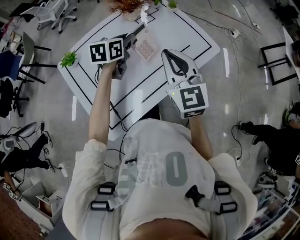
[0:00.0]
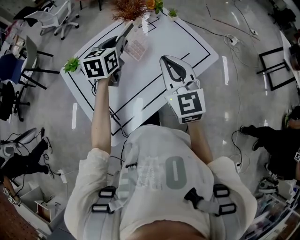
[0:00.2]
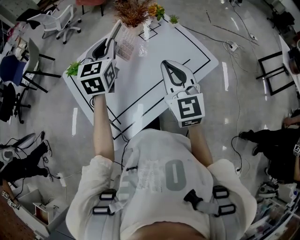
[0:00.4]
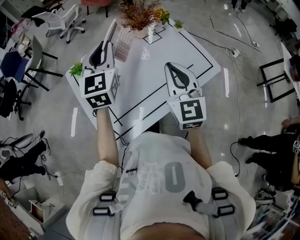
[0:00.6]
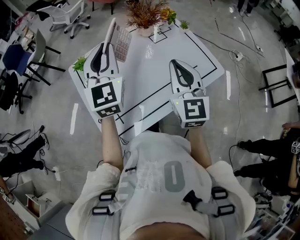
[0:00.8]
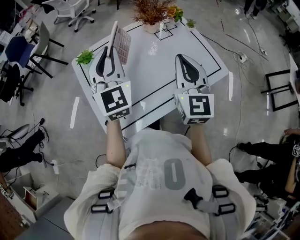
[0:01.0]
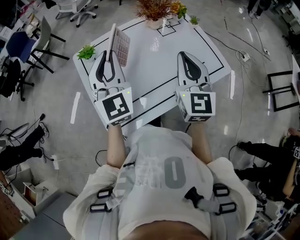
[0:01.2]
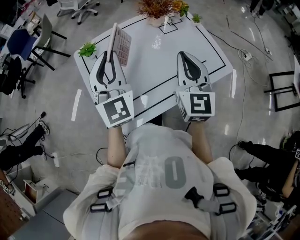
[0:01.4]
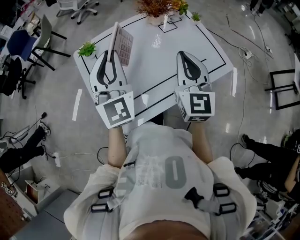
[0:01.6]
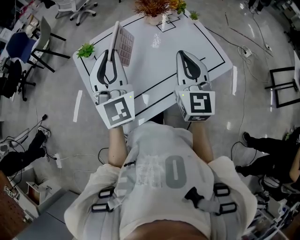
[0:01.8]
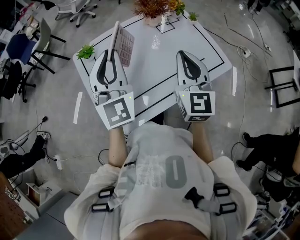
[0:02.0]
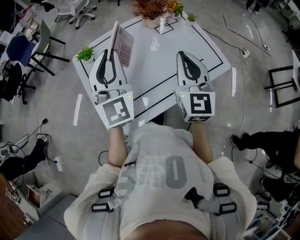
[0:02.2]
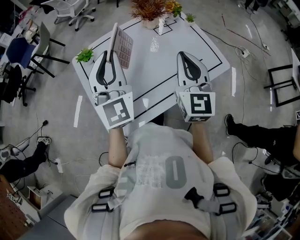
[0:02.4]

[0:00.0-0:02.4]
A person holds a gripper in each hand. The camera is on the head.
0:00.0 to 0:01.2: The left gripper heads upward, to the left and backward, covering roughly 25 cm, and points its fingers some 40 degrees further upward.
0:01.2 to 0:02.4: The grippers stay close to where they were, moving slightly.

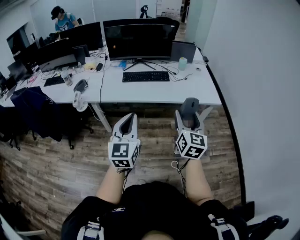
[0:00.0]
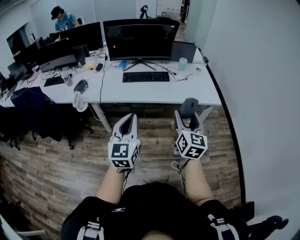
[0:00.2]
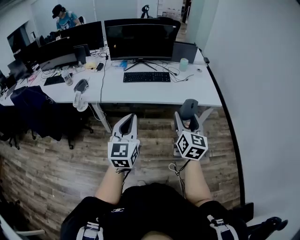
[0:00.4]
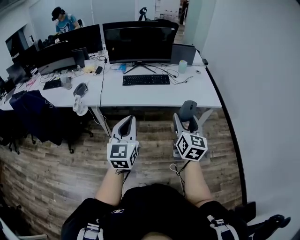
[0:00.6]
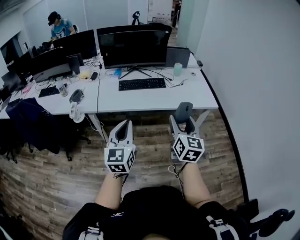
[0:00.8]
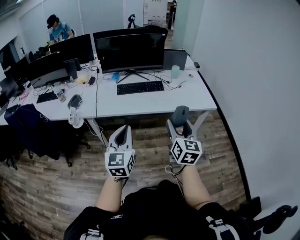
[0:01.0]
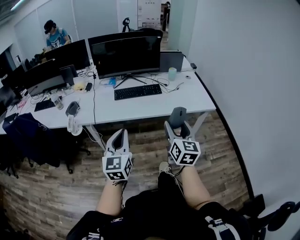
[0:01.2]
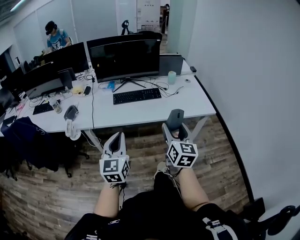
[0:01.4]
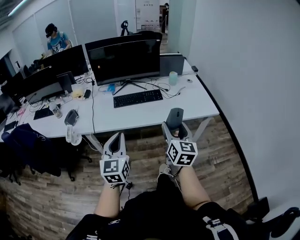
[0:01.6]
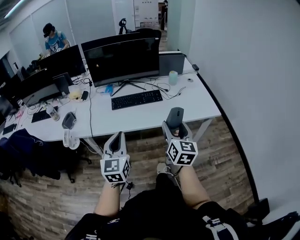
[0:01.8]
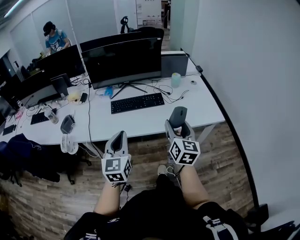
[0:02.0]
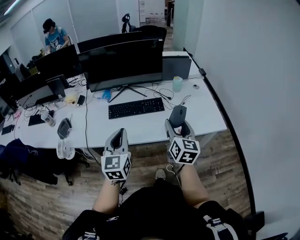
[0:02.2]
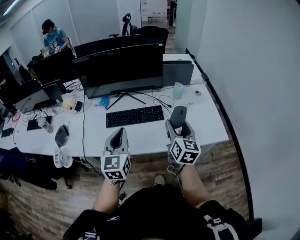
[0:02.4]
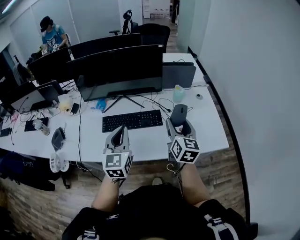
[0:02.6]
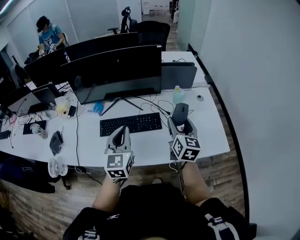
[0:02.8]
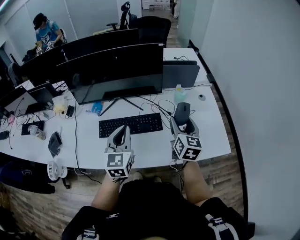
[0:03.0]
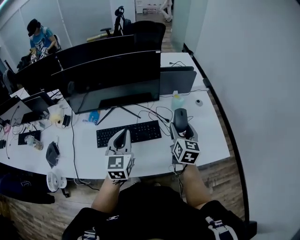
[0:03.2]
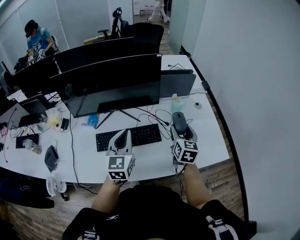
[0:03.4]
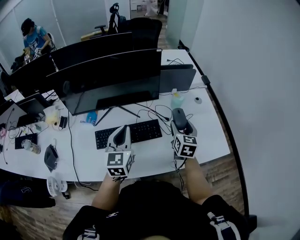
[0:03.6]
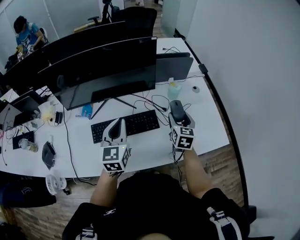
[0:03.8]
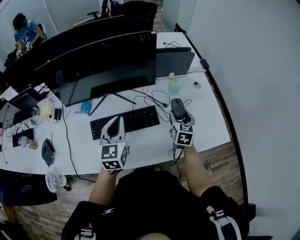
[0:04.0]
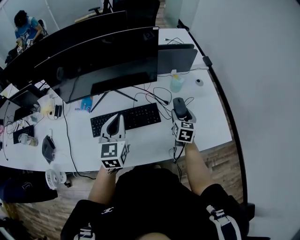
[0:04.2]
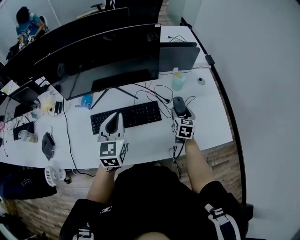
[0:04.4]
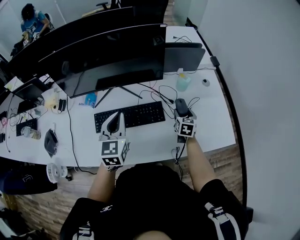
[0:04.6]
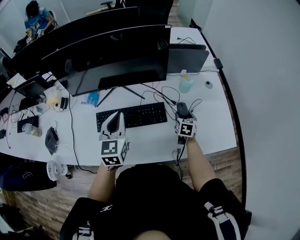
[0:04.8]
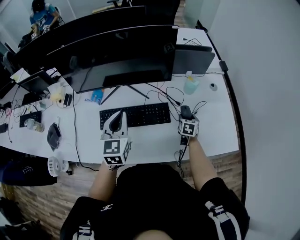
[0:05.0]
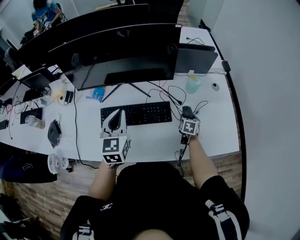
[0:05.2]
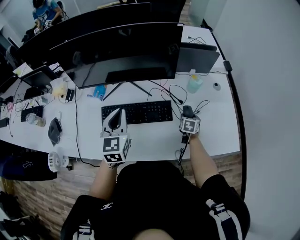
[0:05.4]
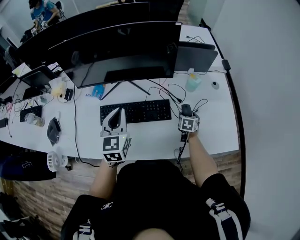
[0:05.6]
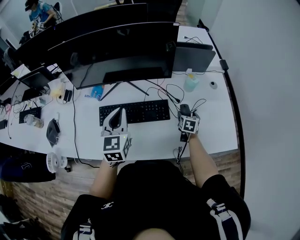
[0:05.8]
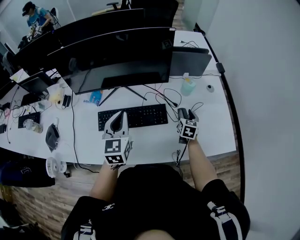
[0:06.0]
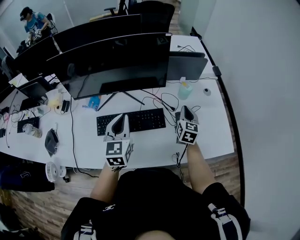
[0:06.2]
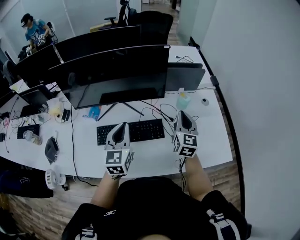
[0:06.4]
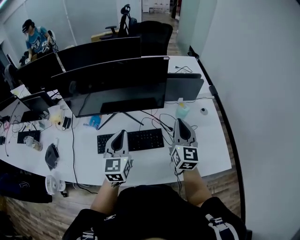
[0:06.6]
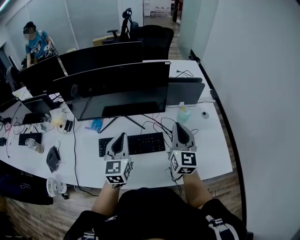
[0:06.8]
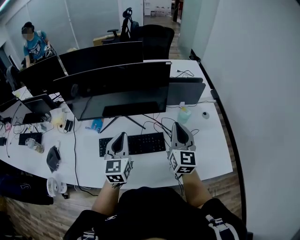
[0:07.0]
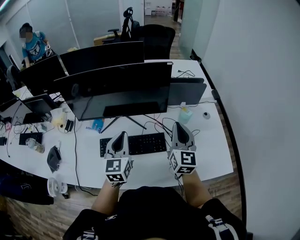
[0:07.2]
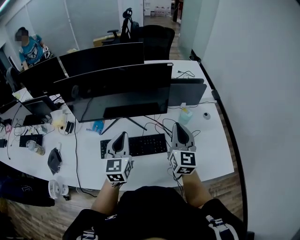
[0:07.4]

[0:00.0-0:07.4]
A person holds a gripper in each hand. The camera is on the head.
0:00.0 to 0:01.4: The left gripper travels to the left and forward by approximately 10 cm. Meanwhile the right gripper shifts approximately 10 cm forward and to the left.
0:01.4 to 0:03.0: The pair of grippers is taken forward, about 60 cm.
0:03.0 to 0:04.4: The left gripper is displaced forward by some 10 cm; the right gripper is displaced downward and forward by some 20 cm, and changes its angle by about 20 degrees.
0:04.4 to 0:06.0: The right gripper moves approximately 10 cm downward and comes back.
0:06.0 to 0:07.4: The right gripper shifts approximately 25 cm upward, tilts its fingers roughly 30 degrees upward, and closes.

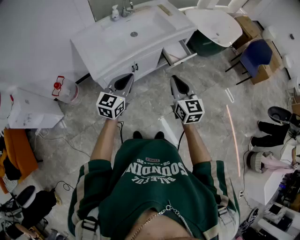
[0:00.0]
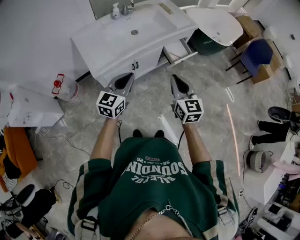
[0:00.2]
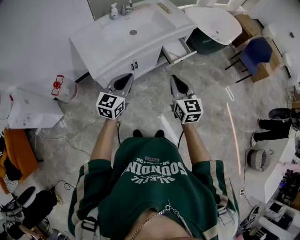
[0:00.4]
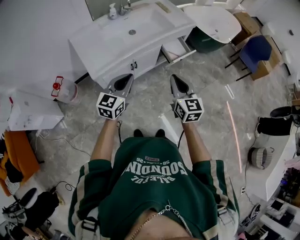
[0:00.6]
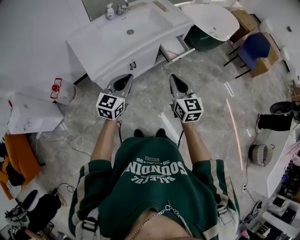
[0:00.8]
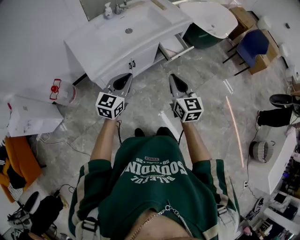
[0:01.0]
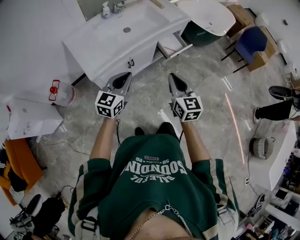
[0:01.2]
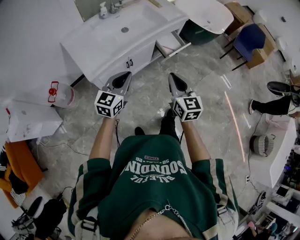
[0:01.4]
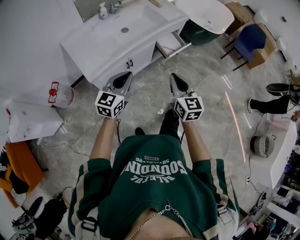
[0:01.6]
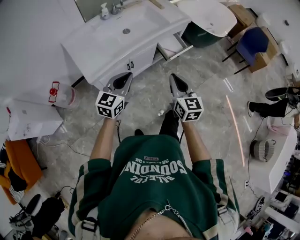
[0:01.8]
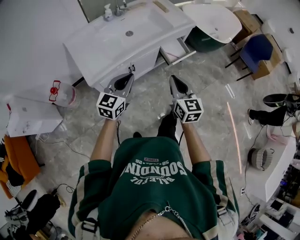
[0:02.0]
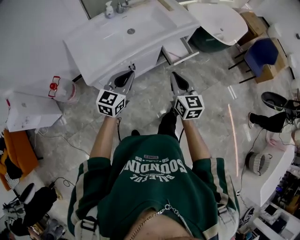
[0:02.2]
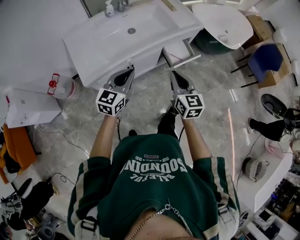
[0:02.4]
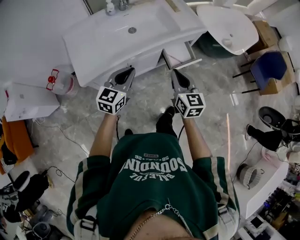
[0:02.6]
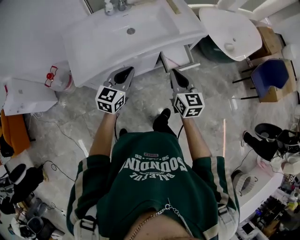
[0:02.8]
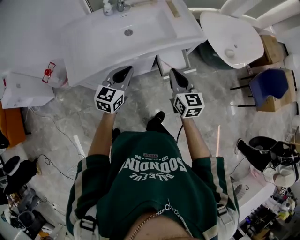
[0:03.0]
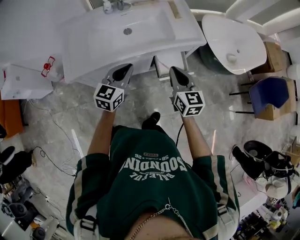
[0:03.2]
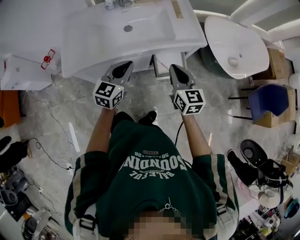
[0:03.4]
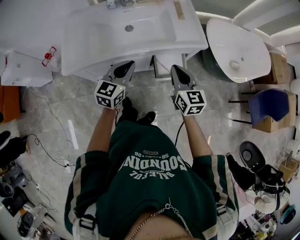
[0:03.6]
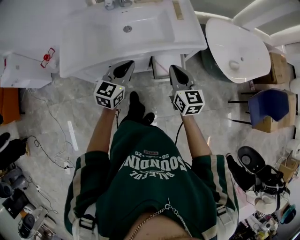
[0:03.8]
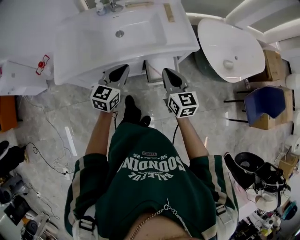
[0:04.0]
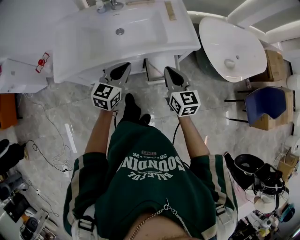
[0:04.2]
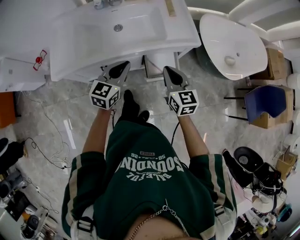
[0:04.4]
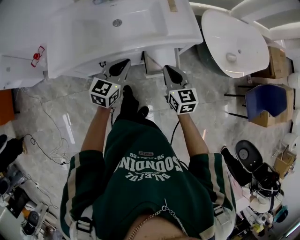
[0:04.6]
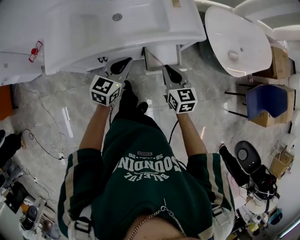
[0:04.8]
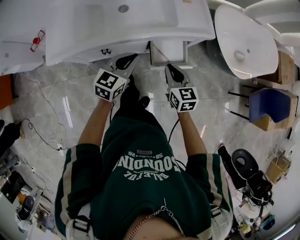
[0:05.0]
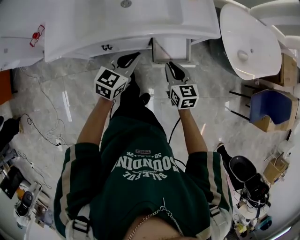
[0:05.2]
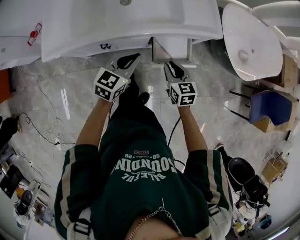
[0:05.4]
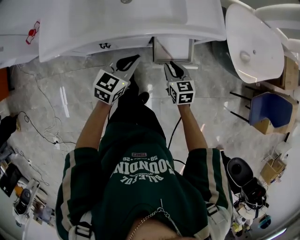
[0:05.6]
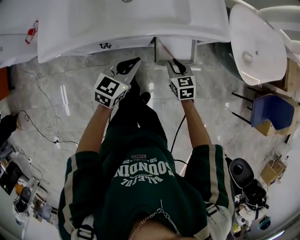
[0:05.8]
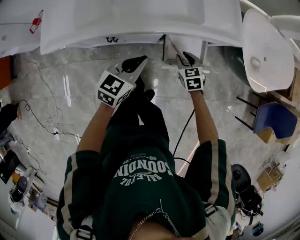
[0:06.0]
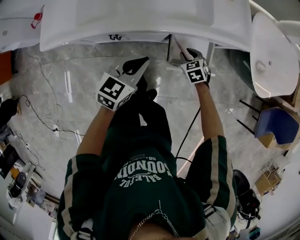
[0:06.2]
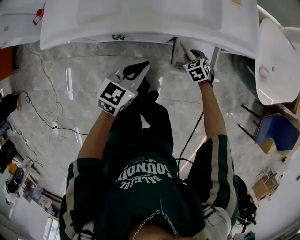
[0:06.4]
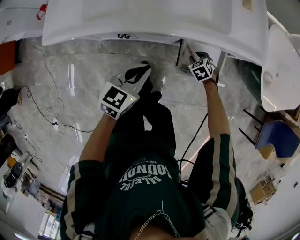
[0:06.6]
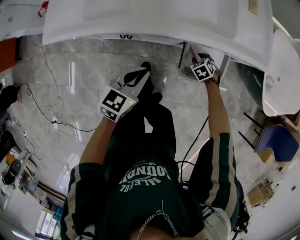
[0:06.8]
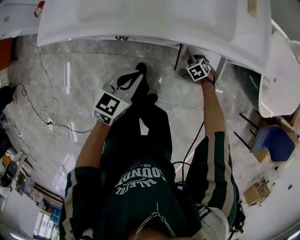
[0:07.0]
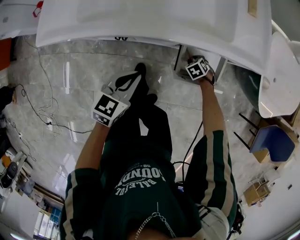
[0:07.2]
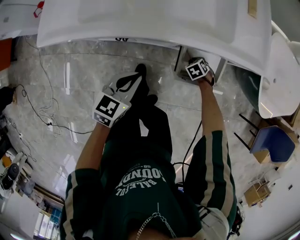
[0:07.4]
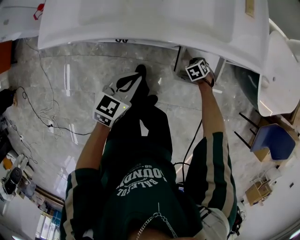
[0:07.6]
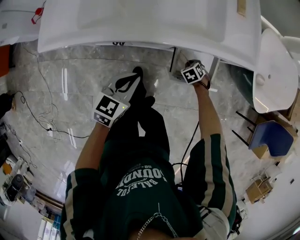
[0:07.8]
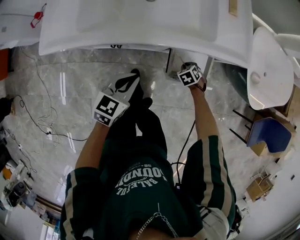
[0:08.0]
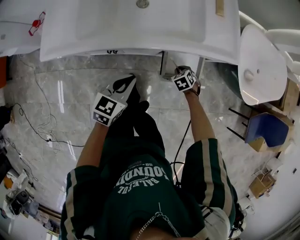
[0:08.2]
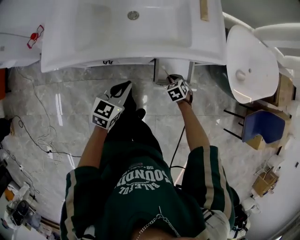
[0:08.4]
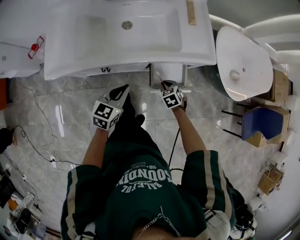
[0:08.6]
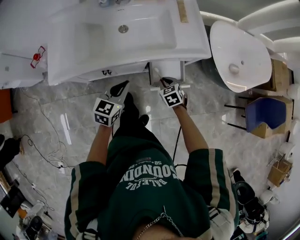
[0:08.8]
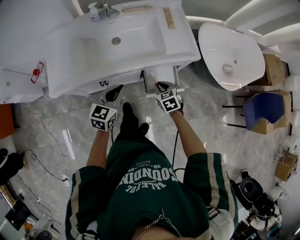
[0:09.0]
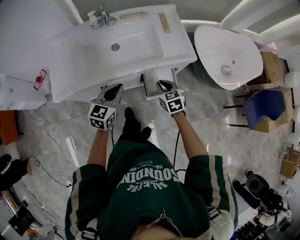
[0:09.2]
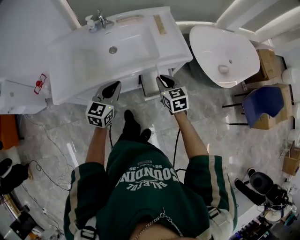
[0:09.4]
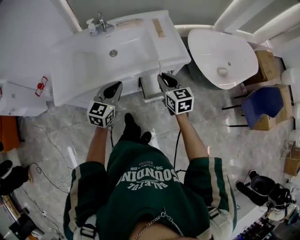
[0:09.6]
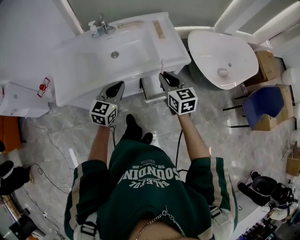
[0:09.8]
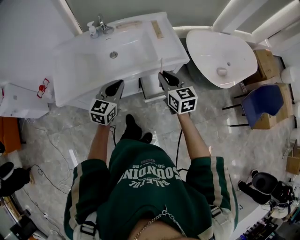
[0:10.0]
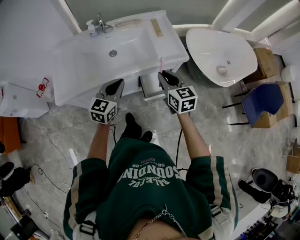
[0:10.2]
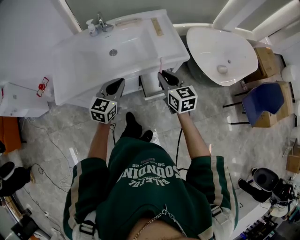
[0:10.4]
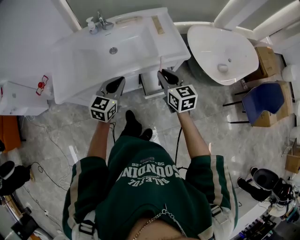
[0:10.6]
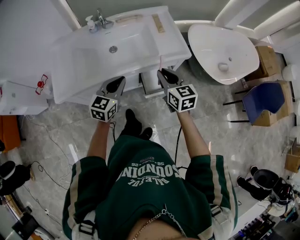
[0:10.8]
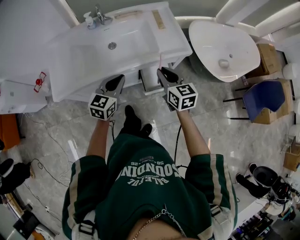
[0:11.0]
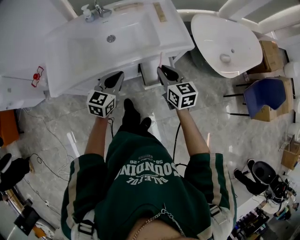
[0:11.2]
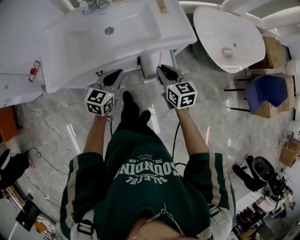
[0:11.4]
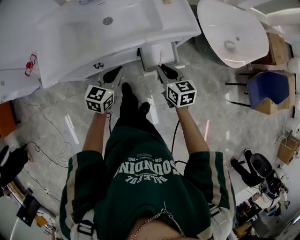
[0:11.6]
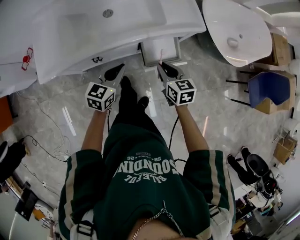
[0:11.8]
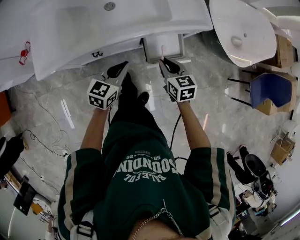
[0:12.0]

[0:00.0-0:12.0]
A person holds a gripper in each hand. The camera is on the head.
0:00.0 to 0:01.6: The grippers move only a little.
0:01.6 to 0:03.0: The right gripper is displaced forward by approximately 30 cm, and turns by some 20 degrees. The left gripper moves forward and to the right, roughly 25 cm, and changes its angle by some 20 degrees.
0:03.0 to 0:04.4: Both grippers travel together to the right and forward, about 10 cm.
0:04.4 to 0:06.0: The left gripper goes about 15 cm downward, while the right gripper shifts roughly 30 cm downward, angles its fingers downward, by about 30 degrees, and opens.
0:06.0 to 0:07.6: The left gripper heads downward, covering about 5 cm. The right gripper is displaced downward by roughly 20 cm, and tips its fingers downward by about 30 degrees.
0:07.6 to 0:09.0: The left gripper heads upward, covering roughly 15 cm. The right gripper travels upward by roughly 35 cm, and rotates approximately 40 degrees.
0:09.0 to 0:10.4: The left gripper heads upward, covering some 10 cm. Meanwhile the right gripper travels upward by roughly 20 cm, and points its fingers approximately 30 degrees further upward.
0:10.4 to 0:12.0: The grippers both shift downward by roughly 20 cm.

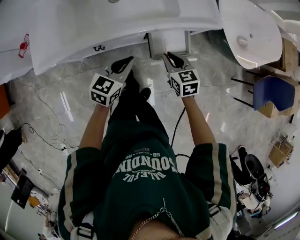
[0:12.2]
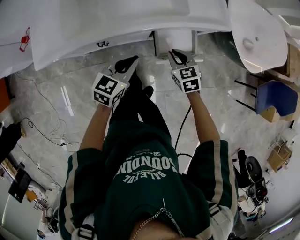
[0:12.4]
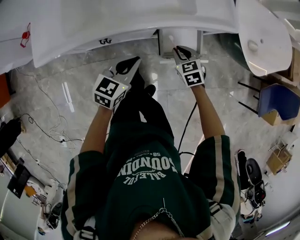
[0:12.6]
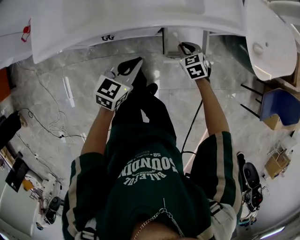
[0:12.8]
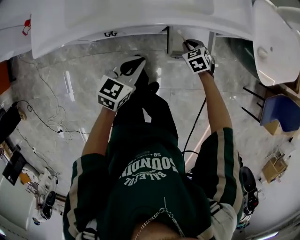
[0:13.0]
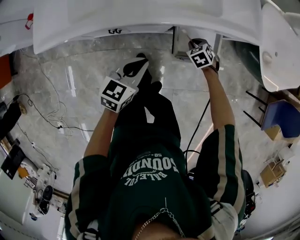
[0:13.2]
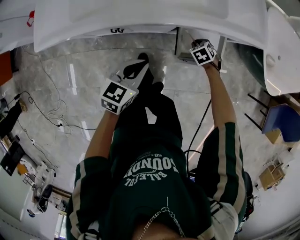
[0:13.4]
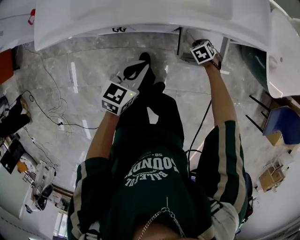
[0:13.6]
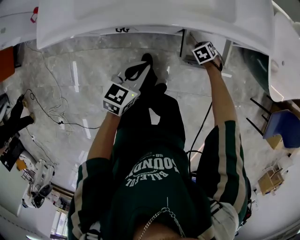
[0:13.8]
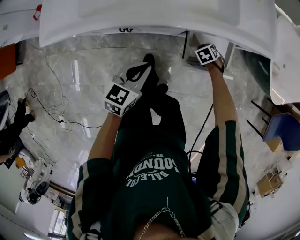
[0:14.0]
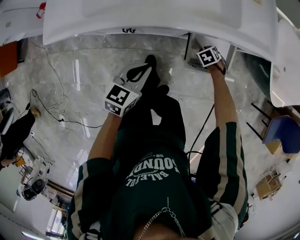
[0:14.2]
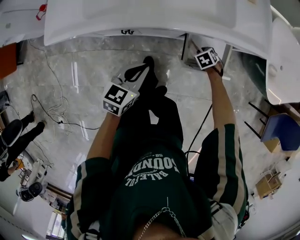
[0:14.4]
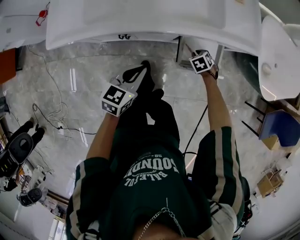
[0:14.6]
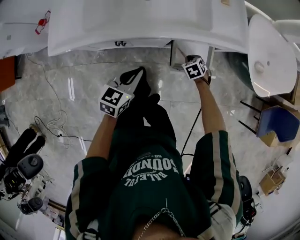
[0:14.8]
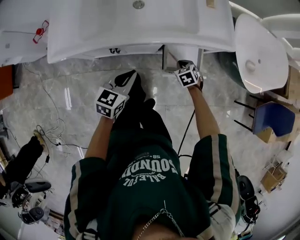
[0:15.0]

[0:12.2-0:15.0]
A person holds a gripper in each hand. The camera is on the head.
0:12.2 to 0:13.6: The left gripper is displaced downward by some 10 cm, while the right gripper shifts about 30 cm downward, and tips its fingers downward by approximately 40 degrees.
0:13.6 to 0:15.0: The right gripper moves upward, about 15 cm; the left gripper shifts approximately 10 cm upward.
